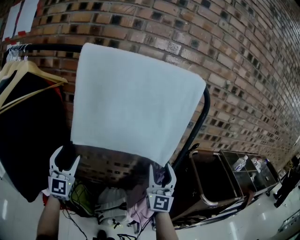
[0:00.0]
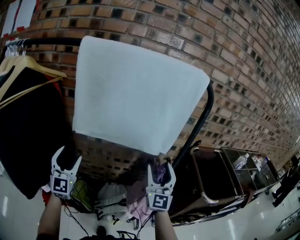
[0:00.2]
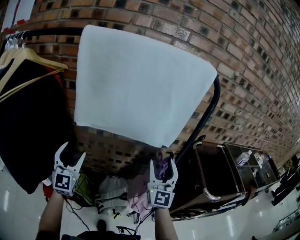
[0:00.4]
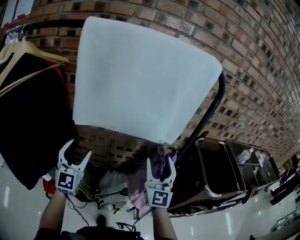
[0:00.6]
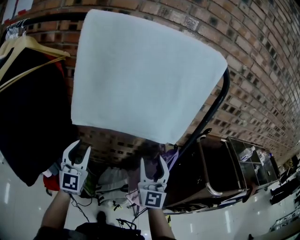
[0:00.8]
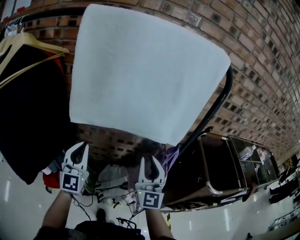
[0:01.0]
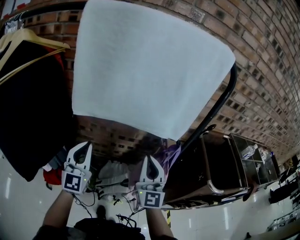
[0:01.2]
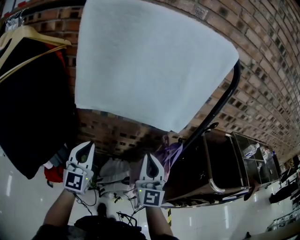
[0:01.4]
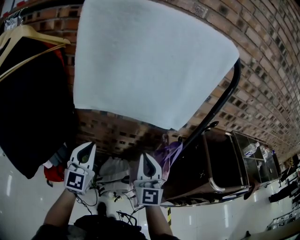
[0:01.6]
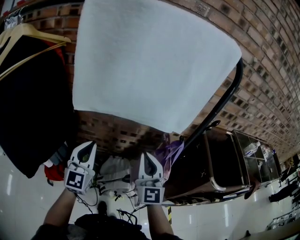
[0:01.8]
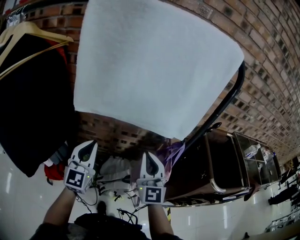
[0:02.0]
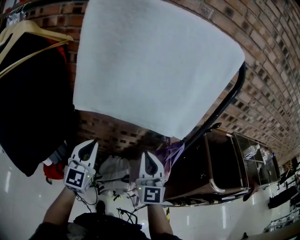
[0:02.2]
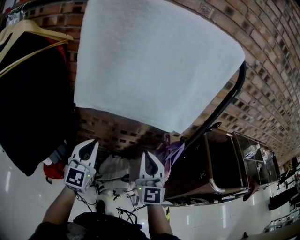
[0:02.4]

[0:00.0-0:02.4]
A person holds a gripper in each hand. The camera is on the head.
0:00.0 to 0:01.2: The right gripper shifts some 10 cm downward and to the left, and closes, while the left gripper is displaced to the right and downward by about 10 cm, and closes its fingers.
0:01.2 to 0:02.4: The grippers stay close to where they were, moving slightly.

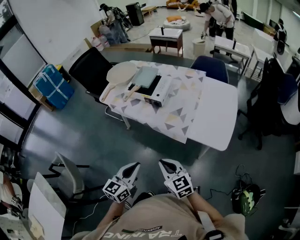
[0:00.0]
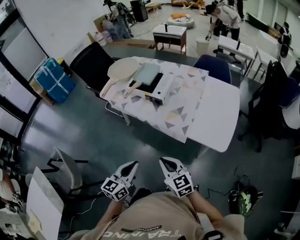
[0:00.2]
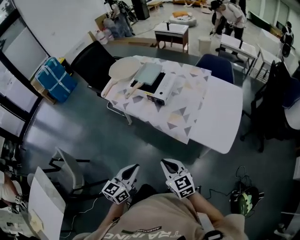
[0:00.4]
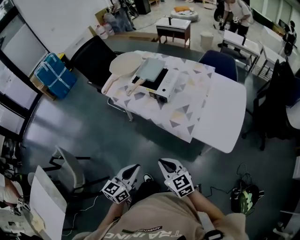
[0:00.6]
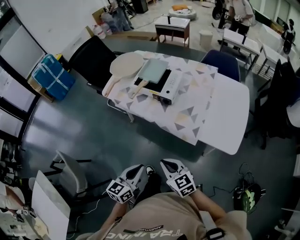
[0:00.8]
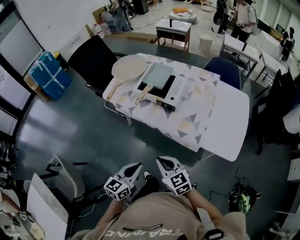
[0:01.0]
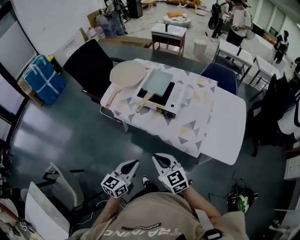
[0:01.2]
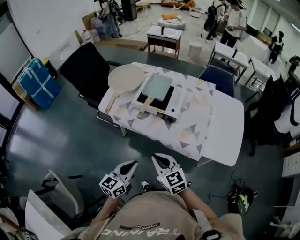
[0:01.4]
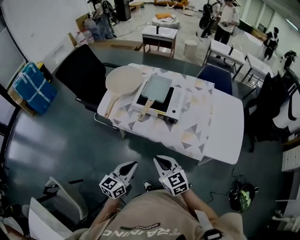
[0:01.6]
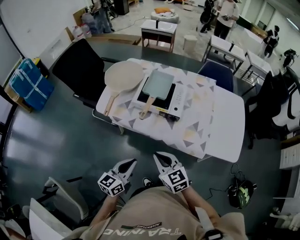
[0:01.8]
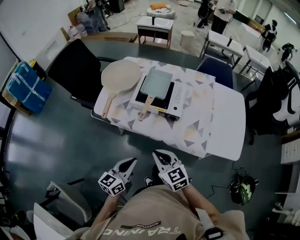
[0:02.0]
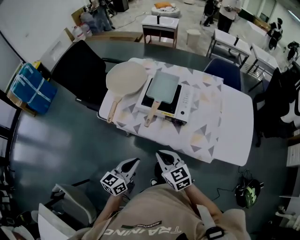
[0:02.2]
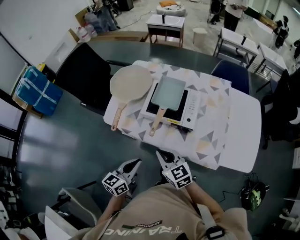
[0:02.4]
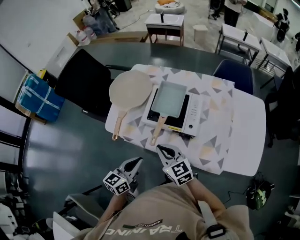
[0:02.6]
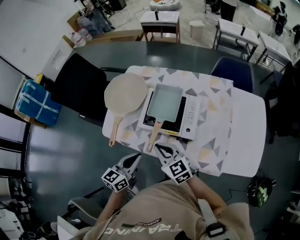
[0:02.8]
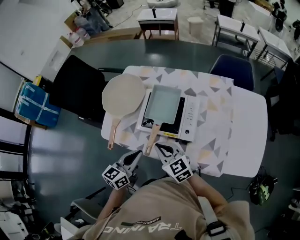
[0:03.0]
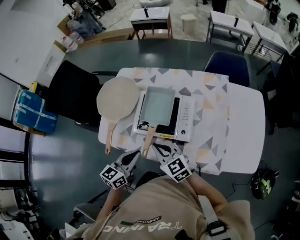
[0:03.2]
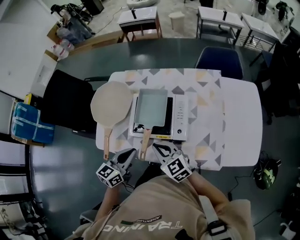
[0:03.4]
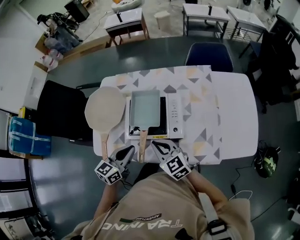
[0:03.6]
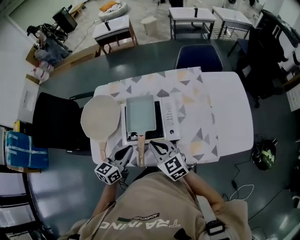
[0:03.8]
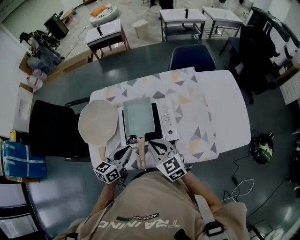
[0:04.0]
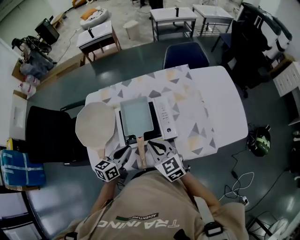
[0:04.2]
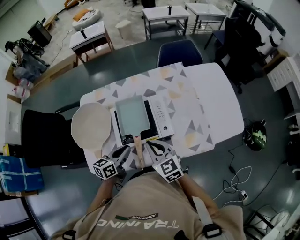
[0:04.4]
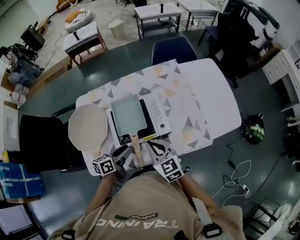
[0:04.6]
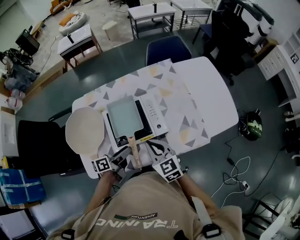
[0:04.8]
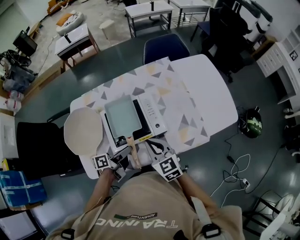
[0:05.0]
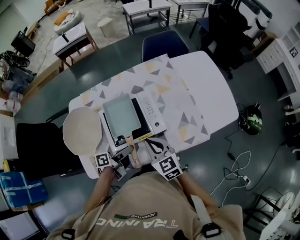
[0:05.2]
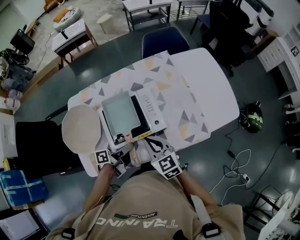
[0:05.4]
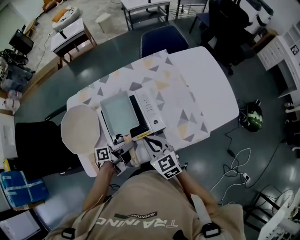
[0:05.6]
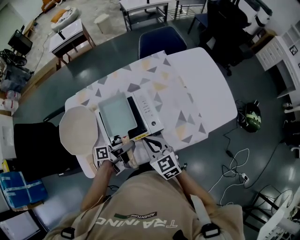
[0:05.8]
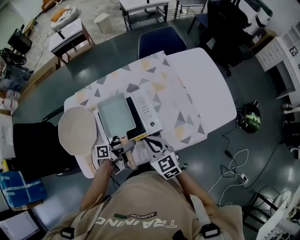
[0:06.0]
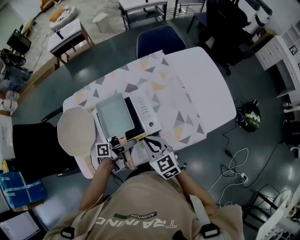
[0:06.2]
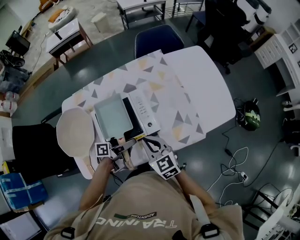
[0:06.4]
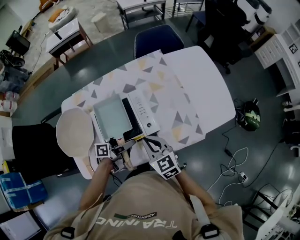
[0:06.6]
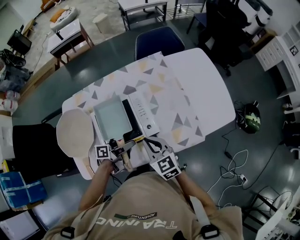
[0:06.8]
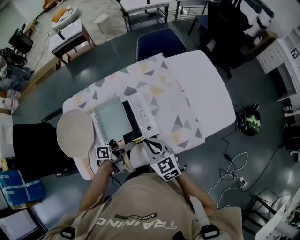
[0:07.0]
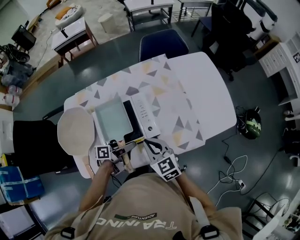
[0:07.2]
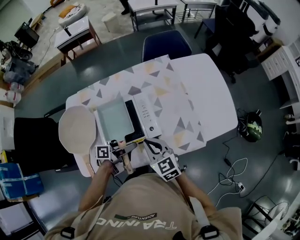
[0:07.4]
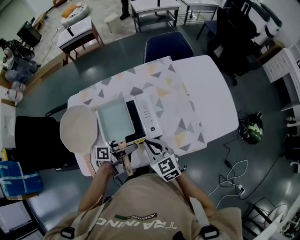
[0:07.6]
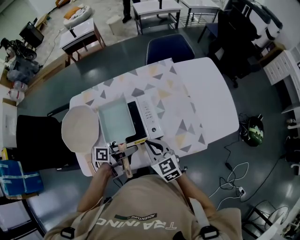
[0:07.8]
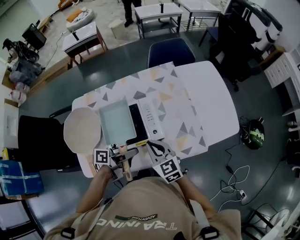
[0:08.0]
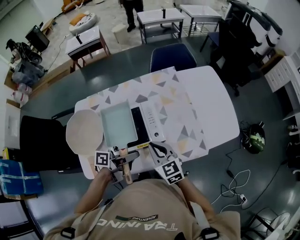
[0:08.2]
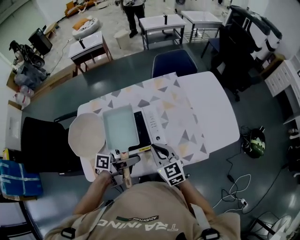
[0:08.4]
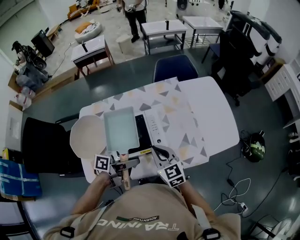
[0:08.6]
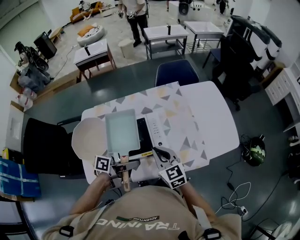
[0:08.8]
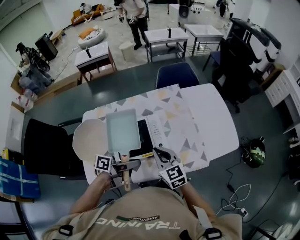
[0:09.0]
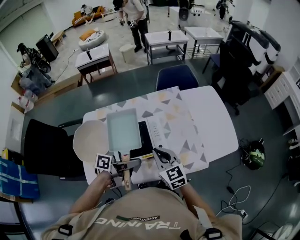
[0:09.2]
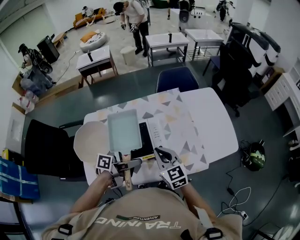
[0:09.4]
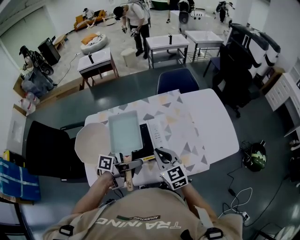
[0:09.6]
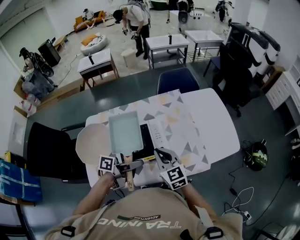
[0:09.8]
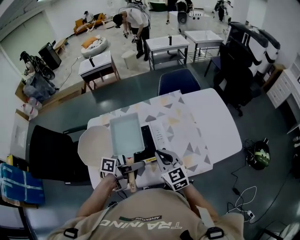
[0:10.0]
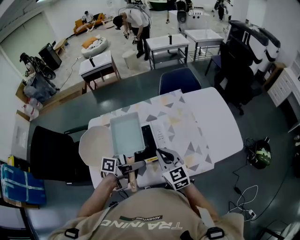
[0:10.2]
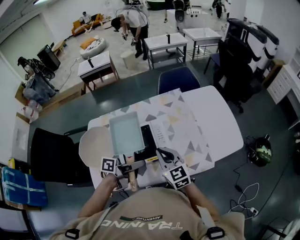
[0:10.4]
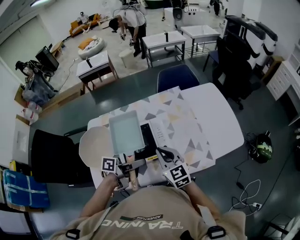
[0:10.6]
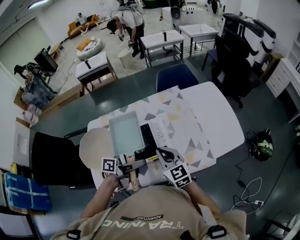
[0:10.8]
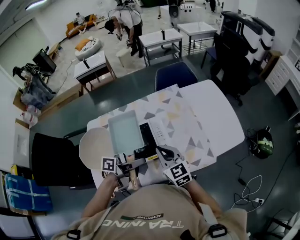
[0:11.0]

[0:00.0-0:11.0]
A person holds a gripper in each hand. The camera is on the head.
0:00.0 to 0:01.6: Both grippers travel together forward and to the left, roughly 25 cm.
0:01.6 to 0:03.2: The two grippers go approximately 25 cm forward.
0:03.2 to 0:04.8: The left gripper shifts by roughly 10 cm, rotates some 50 degrees, and opens up, while the right gripper shifts by roughly 5 cm, and turns by some 40 degrees.
0:04.8 to 0:06.2: The left gripper heads to the right, covering approximately 5 cm, and turns by about 20 degrees.
0:06.2 to 0:07.8: The left gripper closes its fingers.
0:07.8 to 0:09.4: The grippers both shift upward by about 10 cm.
0:09.4 to 0:11.0: The grippers stay close to where they were, moving slightly.

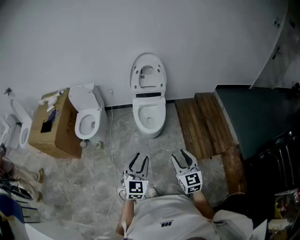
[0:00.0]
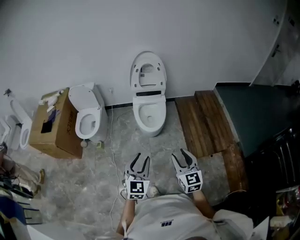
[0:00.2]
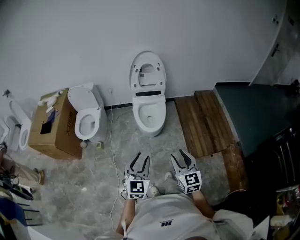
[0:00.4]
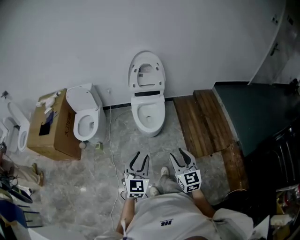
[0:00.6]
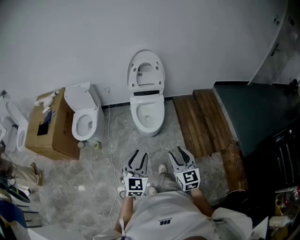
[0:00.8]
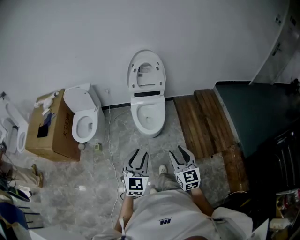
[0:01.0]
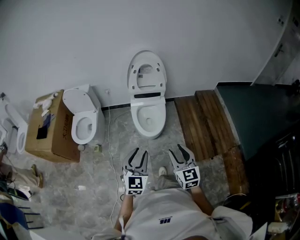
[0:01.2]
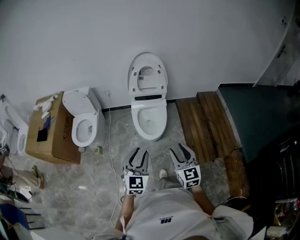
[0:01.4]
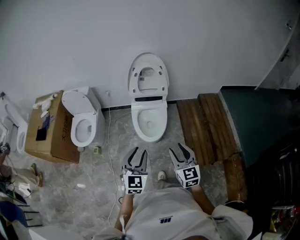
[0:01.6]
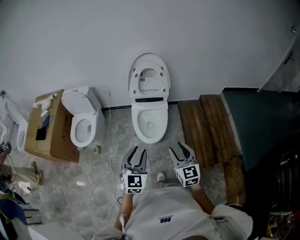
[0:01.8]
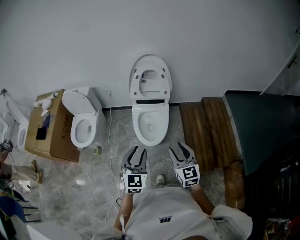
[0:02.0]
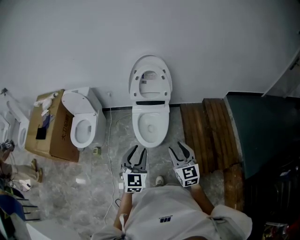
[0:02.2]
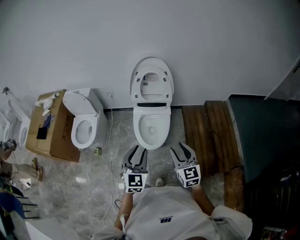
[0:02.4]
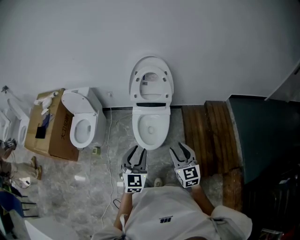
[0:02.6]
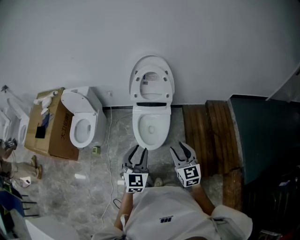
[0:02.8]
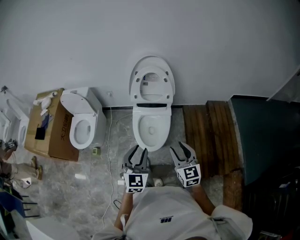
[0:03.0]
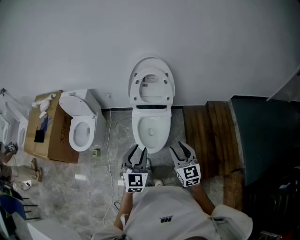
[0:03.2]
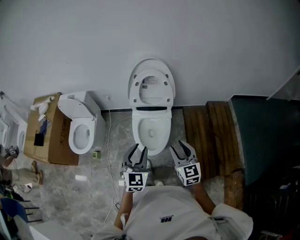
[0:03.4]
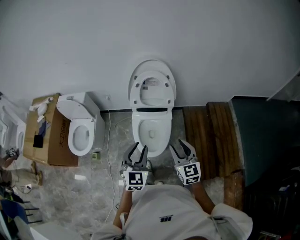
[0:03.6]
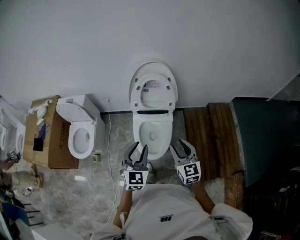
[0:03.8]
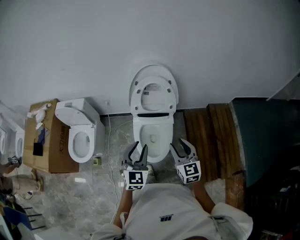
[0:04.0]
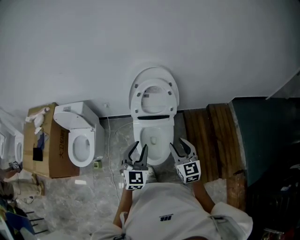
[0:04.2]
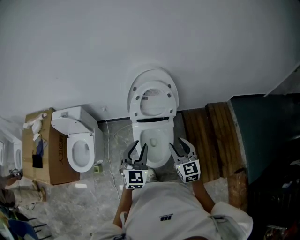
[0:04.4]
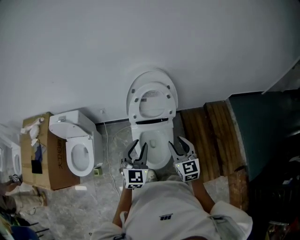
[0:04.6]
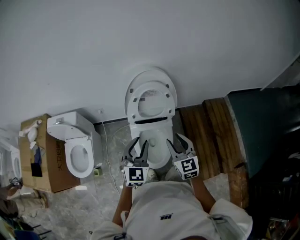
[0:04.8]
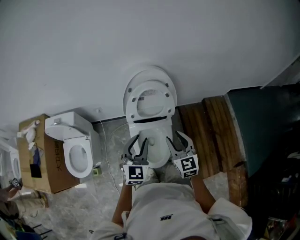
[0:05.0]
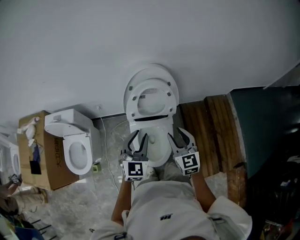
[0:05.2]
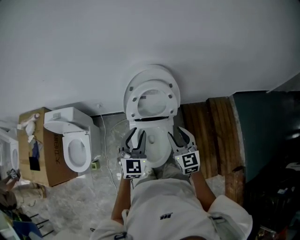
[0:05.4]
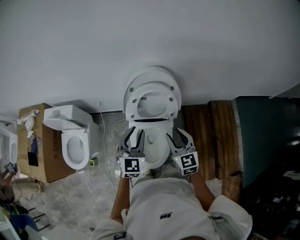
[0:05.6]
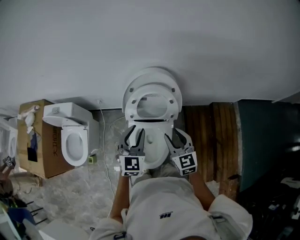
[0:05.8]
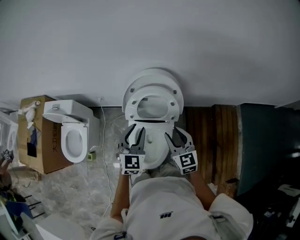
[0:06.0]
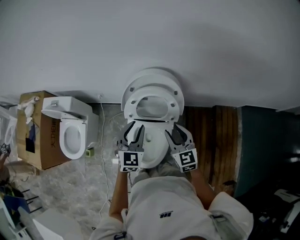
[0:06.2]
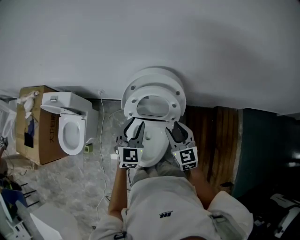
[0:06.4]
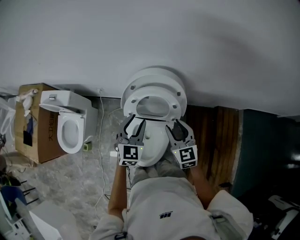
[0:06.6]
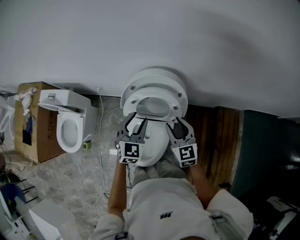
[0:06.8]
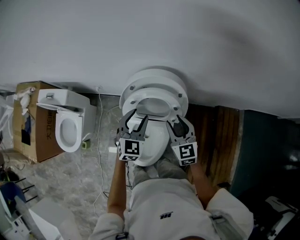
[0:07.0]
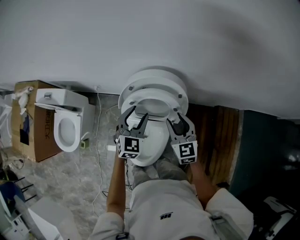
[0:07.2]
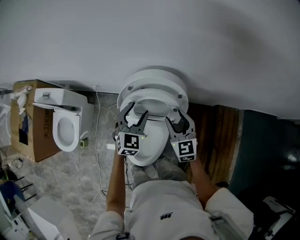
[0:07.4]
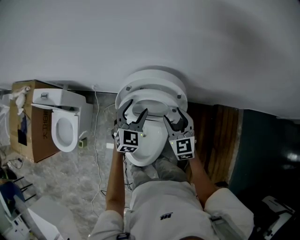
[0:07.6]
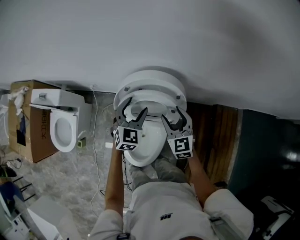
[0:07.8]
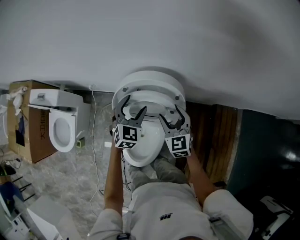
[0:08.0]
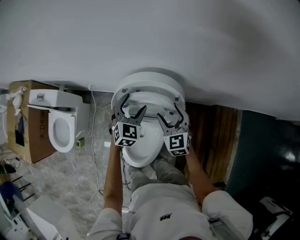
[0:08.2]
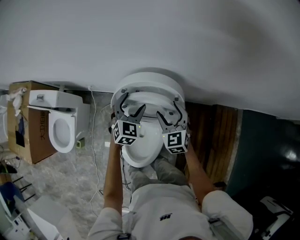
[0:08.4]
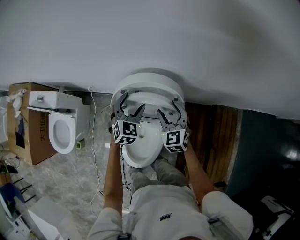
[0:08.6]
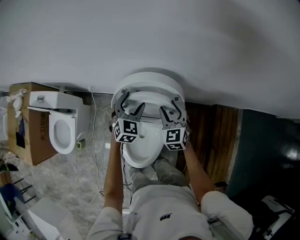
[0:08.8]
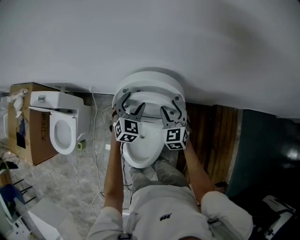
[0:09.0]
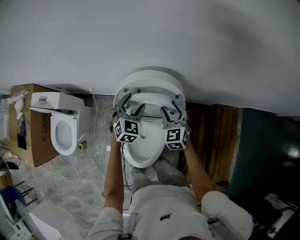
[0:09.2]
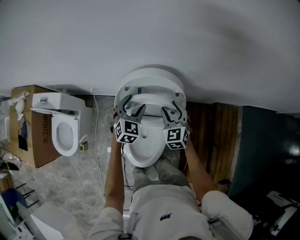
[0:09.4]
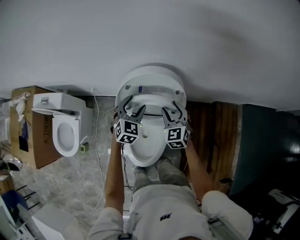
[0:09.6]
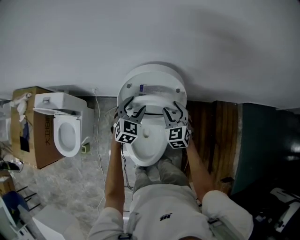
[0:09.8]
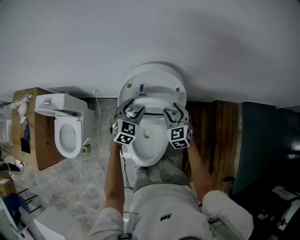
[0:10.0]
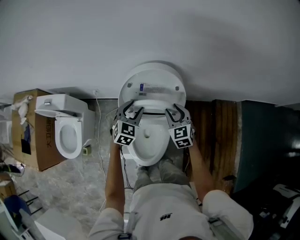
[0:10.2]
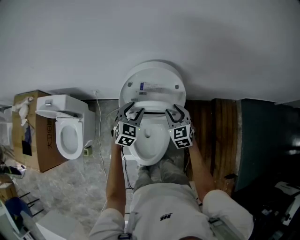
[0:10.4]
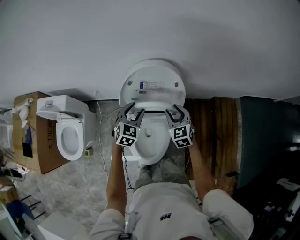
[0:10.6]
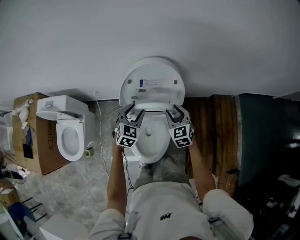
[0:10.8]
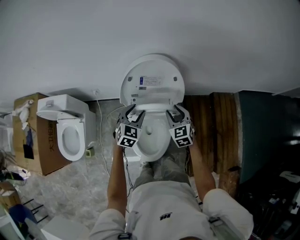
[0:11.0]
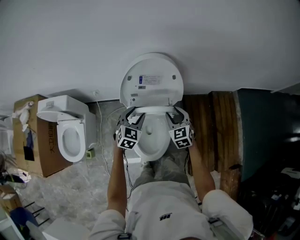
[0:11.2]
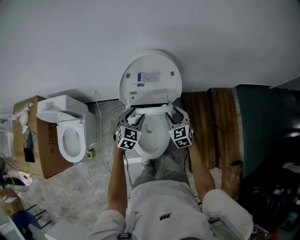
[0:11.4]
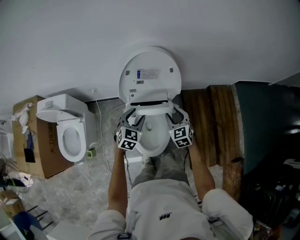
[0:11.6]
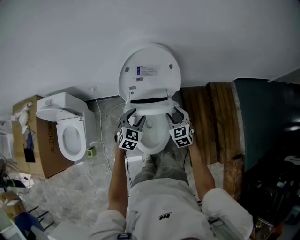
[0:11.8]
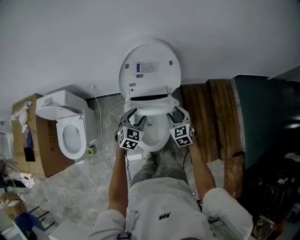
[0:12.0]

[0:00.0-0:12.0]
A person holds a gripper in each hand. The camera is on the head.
0:00.0 to 0:01.6: The two grippers go some 20 cm forward.
0:01.6 to 0:03.0: The two grippers go approximately 15 cm forward.
0:03.0 to 0:04.4: The two grippers go some 25 cm forward.
0:04.4 to 0:06.0: The grippers both shift forward by approximately 20 cm.
0:06.0 to 0:07.6: Both grippers travel together forward and downward, roughly 20 cm. The left gripper opens.
0:07.6 to 0:09.0: The left gripper ends up approximately 5 cm from where it was. Meanwhile the right gripper ends up approximately 5 cm from where it was.
0:09.0 to 0:10.4: The two grippers go some 10 cm backward.
0:10.4 to 0:12.0: The two grippers go some 15 cm backward.
